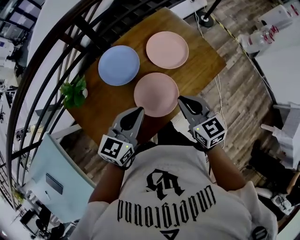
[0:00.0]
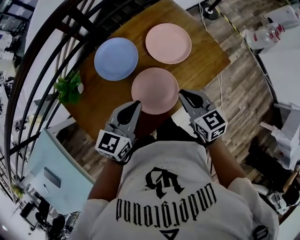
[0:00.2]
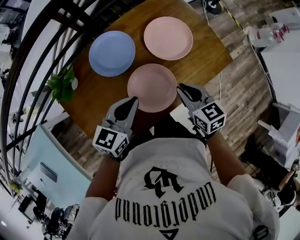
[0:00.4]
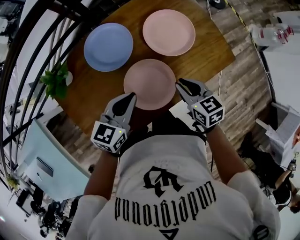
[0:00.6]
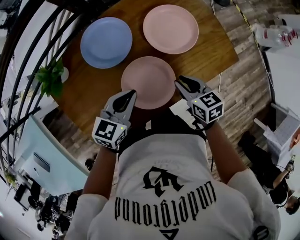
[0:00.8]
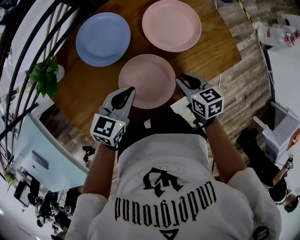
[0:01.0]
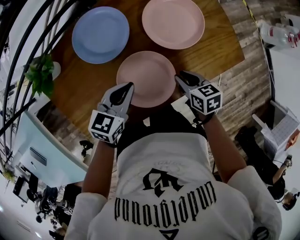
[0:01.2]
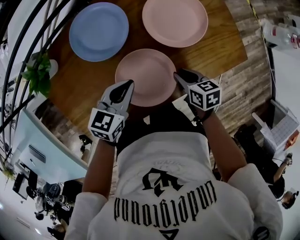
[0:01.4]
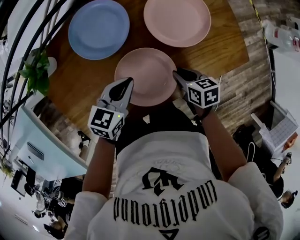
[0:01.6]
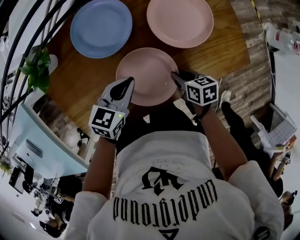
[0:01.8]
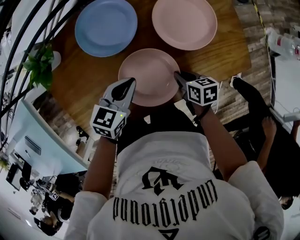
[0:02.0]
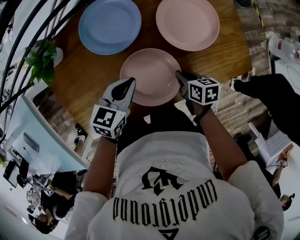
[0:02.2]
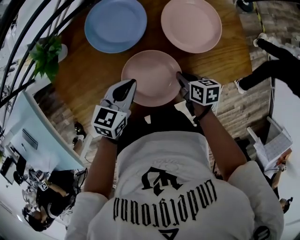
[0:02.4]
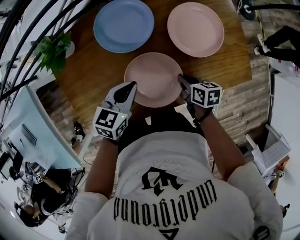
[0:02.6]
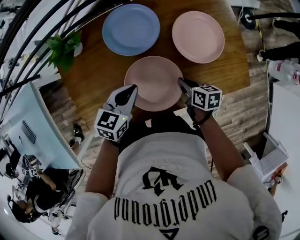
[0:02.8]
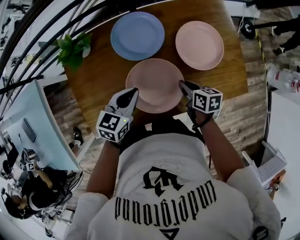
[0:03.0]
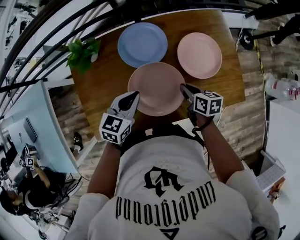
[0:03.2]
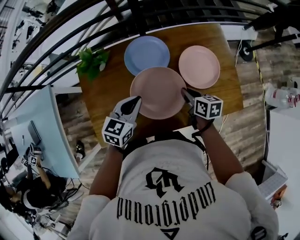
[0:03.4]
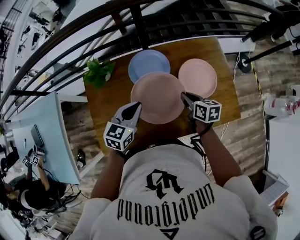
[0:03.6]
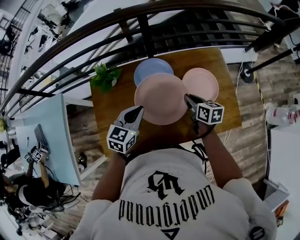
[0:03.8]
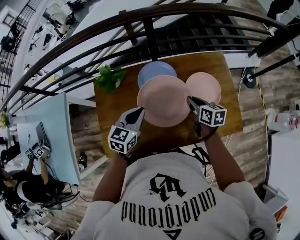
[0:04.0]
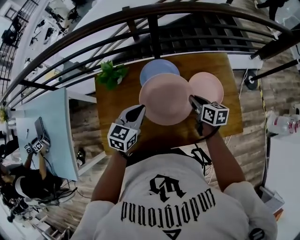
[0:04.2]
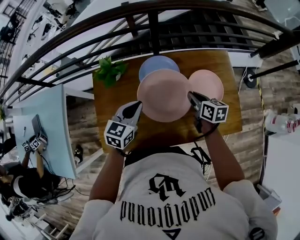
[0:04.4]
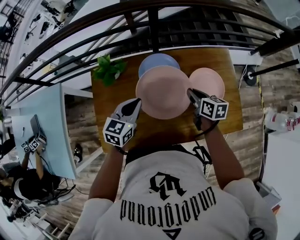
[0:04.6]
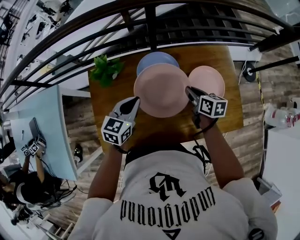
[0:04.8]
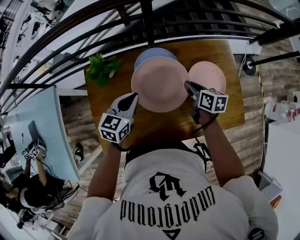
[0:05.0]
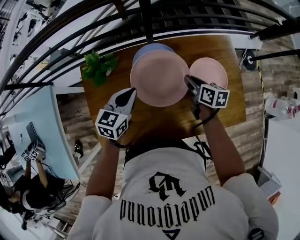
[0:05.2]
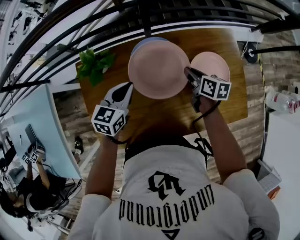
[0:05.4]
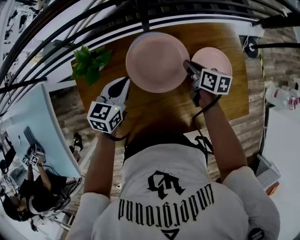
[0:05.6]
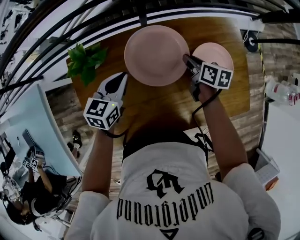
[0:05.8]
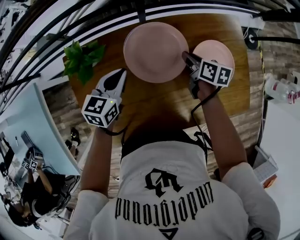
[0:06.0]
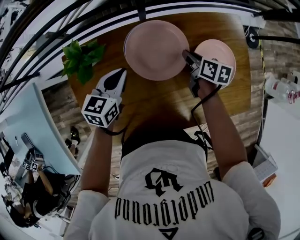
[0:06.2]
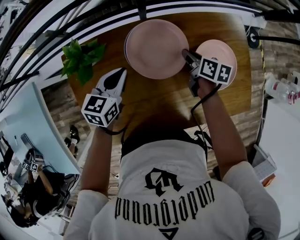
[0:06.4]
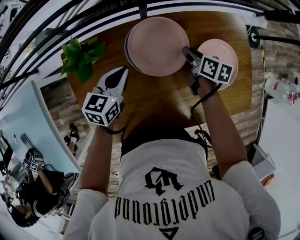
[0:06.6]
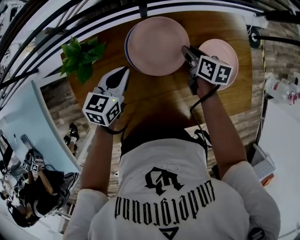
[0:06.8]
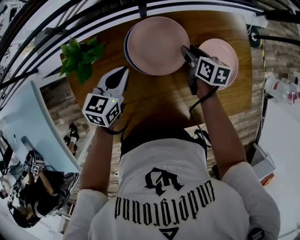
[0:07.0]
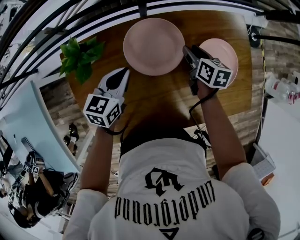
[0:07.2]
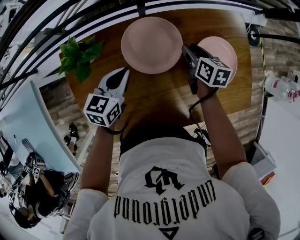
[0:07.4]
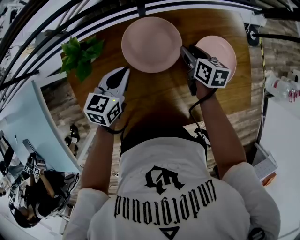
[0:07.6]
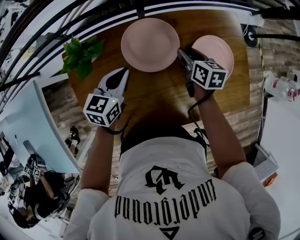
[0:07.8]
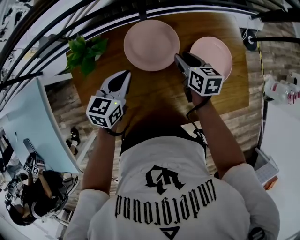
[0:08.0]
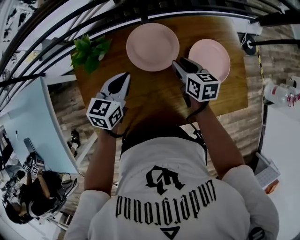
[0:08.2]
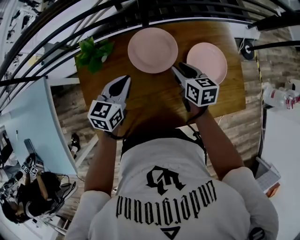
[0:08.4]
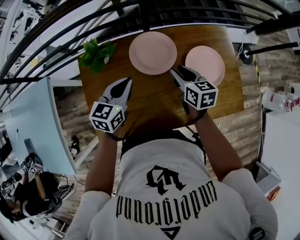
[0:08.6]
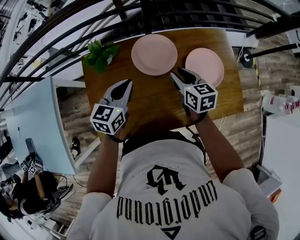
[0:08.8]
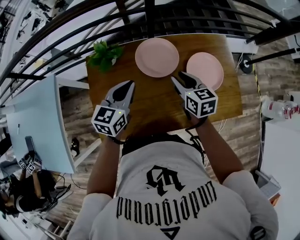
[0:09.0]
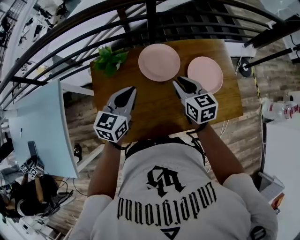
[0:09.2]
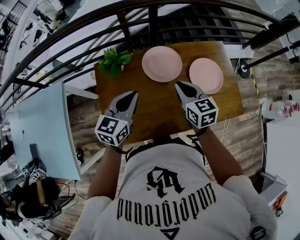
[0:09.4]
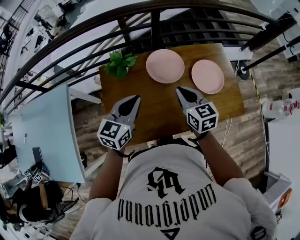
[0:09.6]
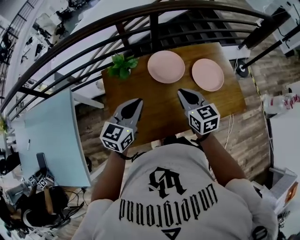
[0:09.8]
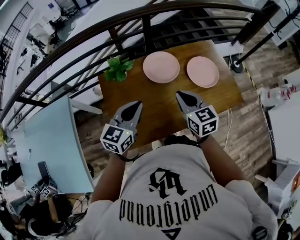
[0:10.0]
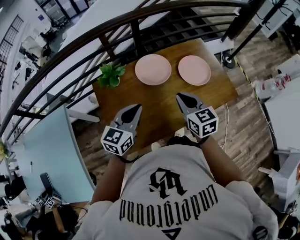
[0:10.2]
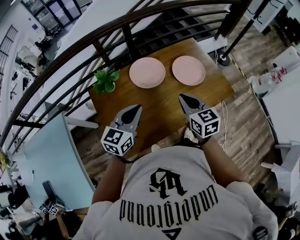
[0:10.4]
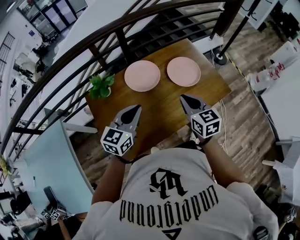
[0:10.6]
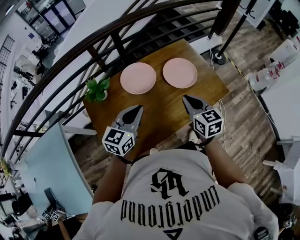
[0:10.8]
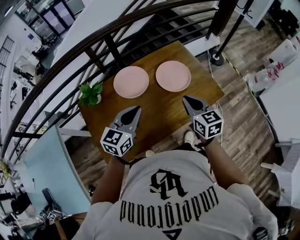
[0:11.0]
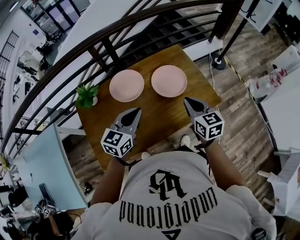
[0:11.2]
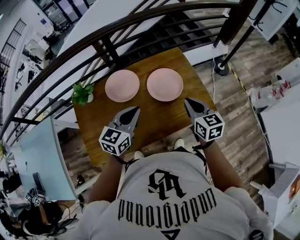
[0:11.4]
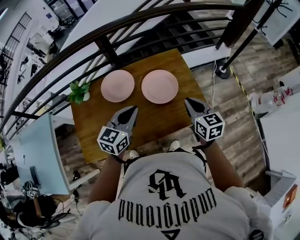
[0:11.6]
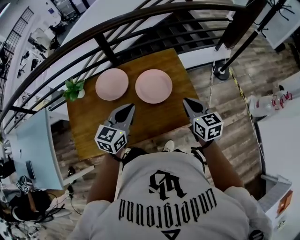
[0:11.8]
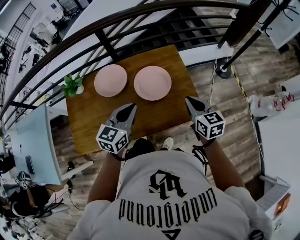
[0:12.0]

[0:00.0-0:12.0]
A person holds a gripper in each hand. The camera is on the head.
0:00.0 to 0:01.6: The grippers both shift downward by approximately 25 cm. The left gripper turns by roughly 20 degrees; the right gripper turns by about 40 degrees.
0:01.6 to 0:03.0: Both grippers travel together to the left, roughly 5 cm.
0:03.0 to 0:04.4: The right gripper moves upward and forward, some 15 cm; the left gripper travels upward and to the left by approximately 10 cm.
0:04.4 to 0:06.0: The right gripper travels downward and forward by some 15 cm. Meanwhile the left gripper travels forward and downward by about 15 cm.
0:06.0 to 0:07.6: The right gripper opens its fingers.
0:07.6 to 0:09.0: Both grippers move upward and backward, roughly 20 cm. The right gripper turns by approximately 20 degrees.
0:09.0 to 0:10.4: Both grippers travel together backward and upward, approximately 15 cm. The left gripper rotates some 20 degrees; the right gripper closes.
0:10.4 to 0:12.0: The two grippers go approximately 30 cm to the right.

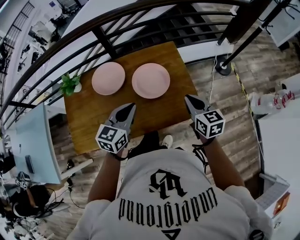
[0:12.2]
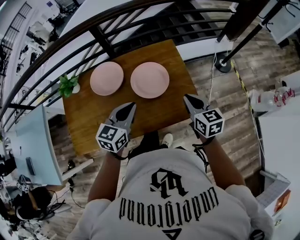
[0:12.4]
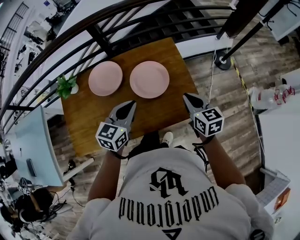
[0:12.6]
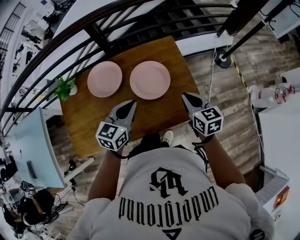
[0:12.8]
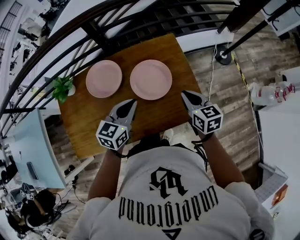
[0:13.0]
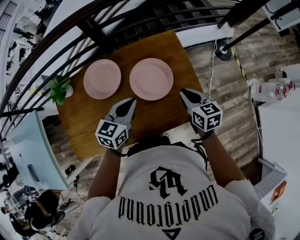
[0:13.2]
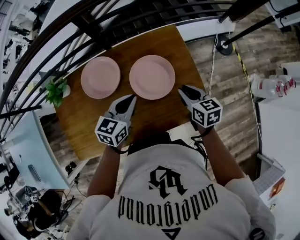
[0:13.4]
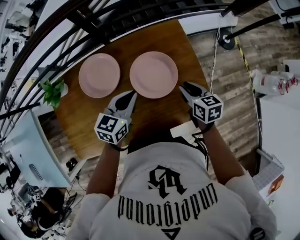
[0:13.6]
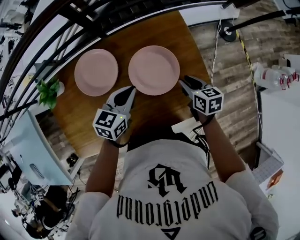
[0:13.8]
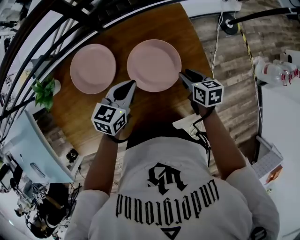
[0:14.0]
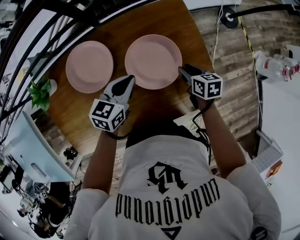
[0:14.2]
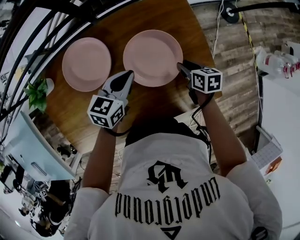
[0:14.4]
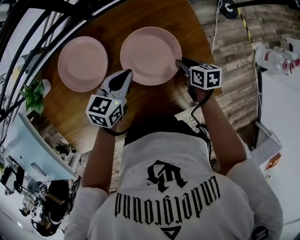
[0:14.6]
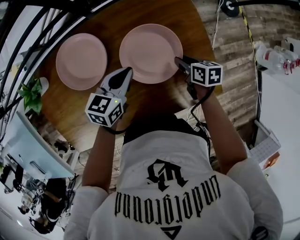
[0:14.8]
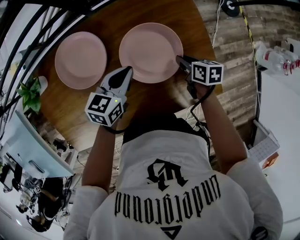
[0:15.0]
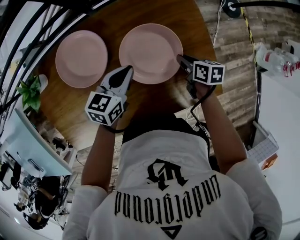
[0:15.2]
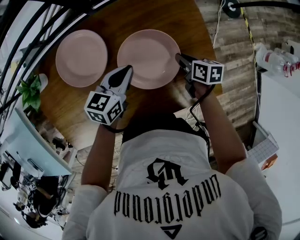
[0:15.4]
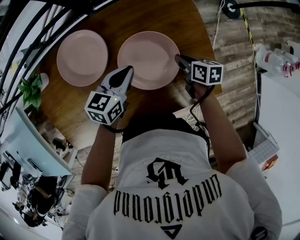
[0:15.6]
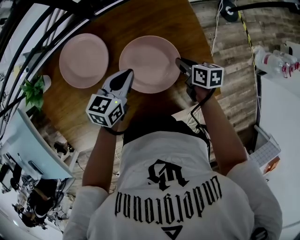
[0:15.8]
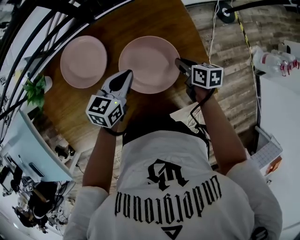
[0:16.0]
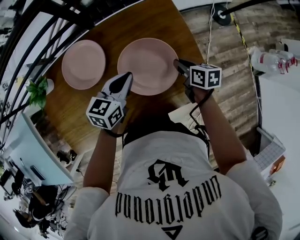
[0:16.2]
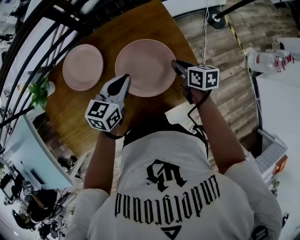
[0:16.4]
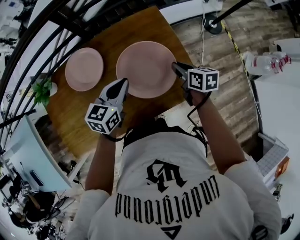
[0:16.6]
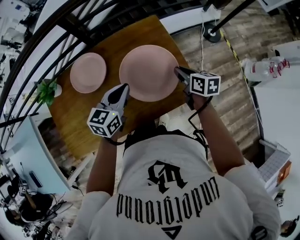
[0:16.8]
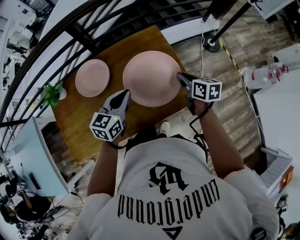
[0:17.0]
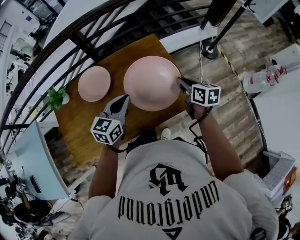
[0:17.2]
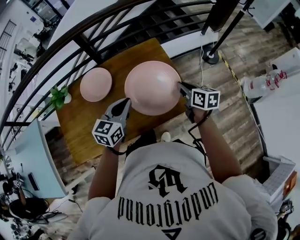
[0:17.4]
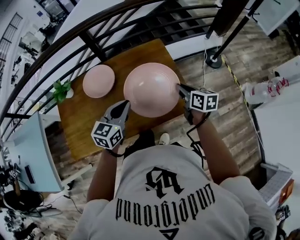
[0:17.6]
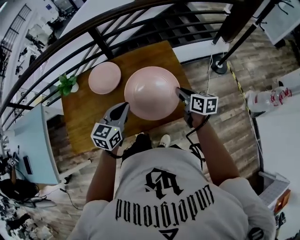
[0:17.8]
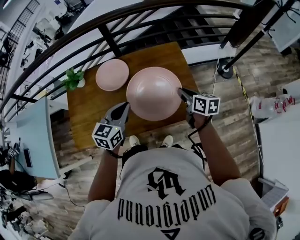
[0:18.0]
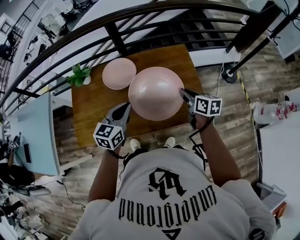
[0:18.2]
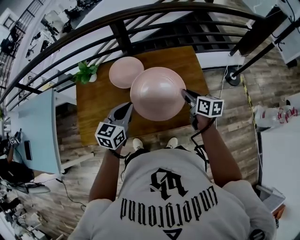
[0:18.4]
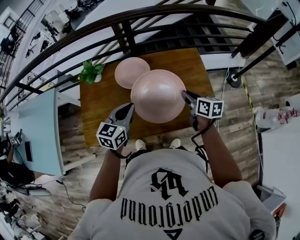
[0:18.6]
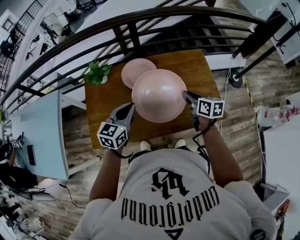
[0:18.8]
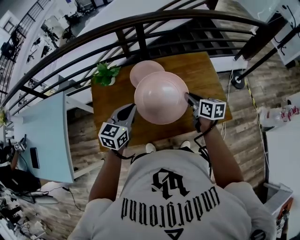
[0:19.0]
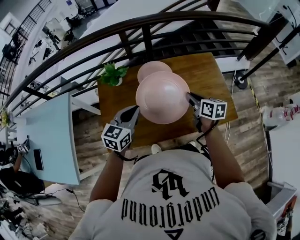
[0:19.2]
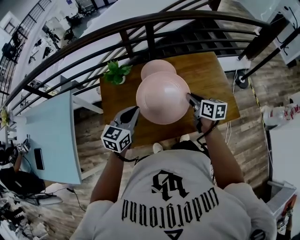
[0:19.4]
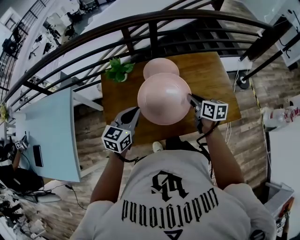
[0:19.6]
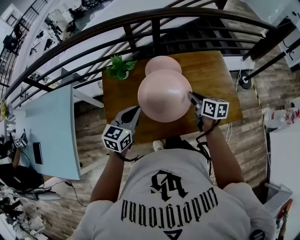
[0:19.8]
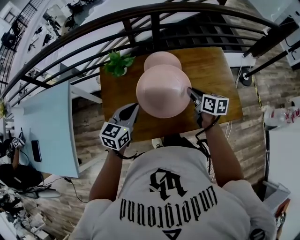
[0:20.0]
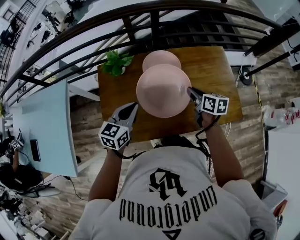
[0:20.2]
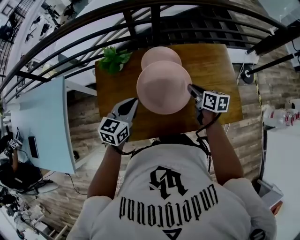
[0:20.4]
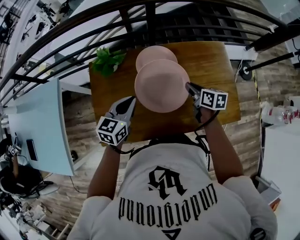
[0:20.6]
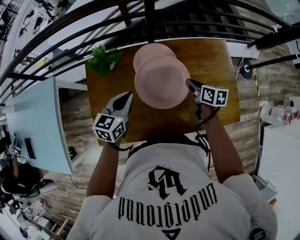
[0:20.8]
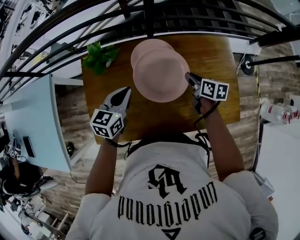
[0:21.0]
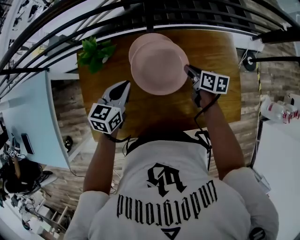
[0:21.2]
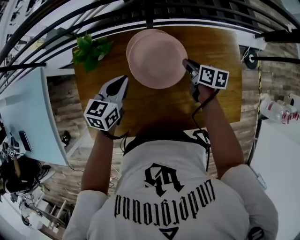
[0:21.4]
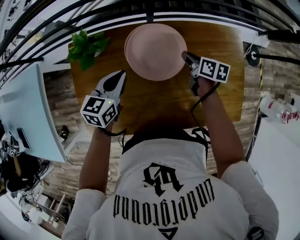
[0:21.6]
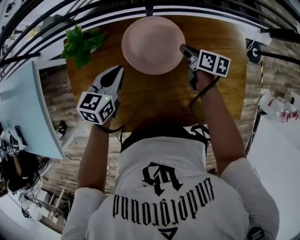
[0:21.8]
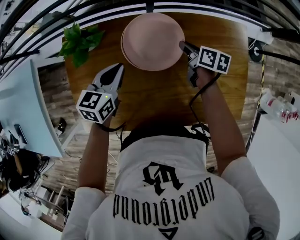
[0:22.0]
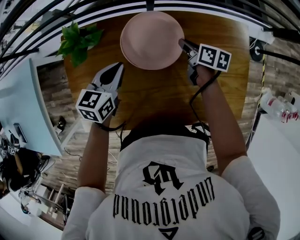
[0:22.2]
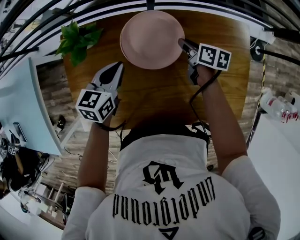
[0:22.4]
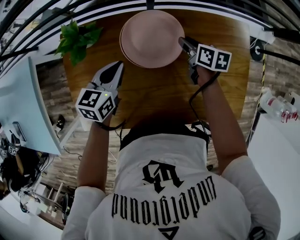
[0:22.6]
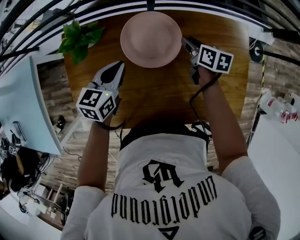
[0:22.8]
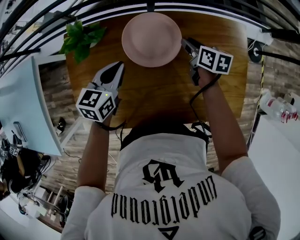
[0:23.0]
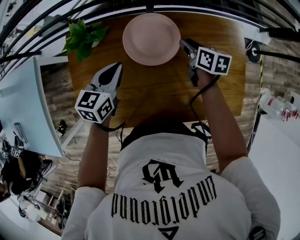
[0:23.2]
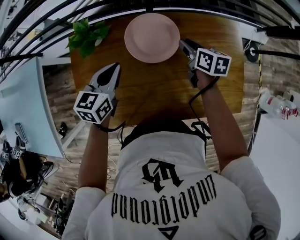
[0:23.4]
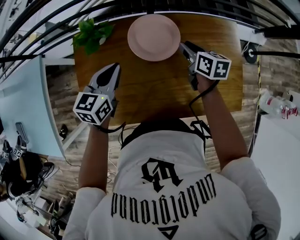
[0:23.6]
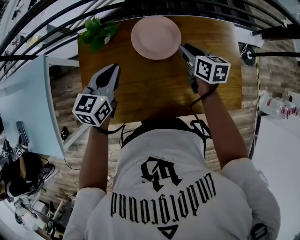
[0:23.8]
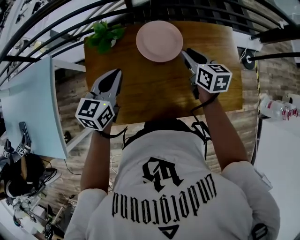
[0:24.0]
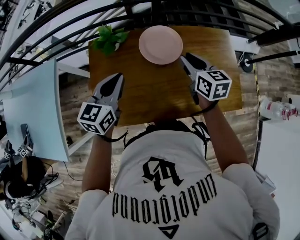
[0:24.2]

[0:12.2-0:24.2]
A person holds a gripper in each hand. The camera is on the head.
0:12.2 to 0:13.8: The left gripper shifts approximately 20 cm forward and downward; the right gripper shifts roughly 20 cm downward and forward, swivels some 20 degrees, and opens up.
0:13.8 to 0:15.2: The grippers both shift downward by roughly 10 cm.
0:15.2 to 0:16.6: The left gripper shifts approximately 15 cm upward and backward, while the right gripper goes some 15 cm upward and to the right.
0:16.6 to 0:18.2: The left gripper goes approximately 20 cm backward, upward and to the left, while the right gripper travels upward, backward and to the left by approximately 15 cm.
0:18.2 to 0:19.8: Both grippers travel together to the left, approximately 25 cm.
0:19.8 to 0:21.2: The two grippers go some 20 cm forward and downward.
0:21.2 to 0:22.6: The left gripper travels downward by approximately 5 cm. Meanwhile the right gripper shifts approximately 10 cm forward and downward.
0:22.6 to 0:24.2: The left gripper shifts roughly 20 cm upward, backward and to the left; the right gripper moves upward and backward, approximately 25 cm, and turns by some 30 degrees.
